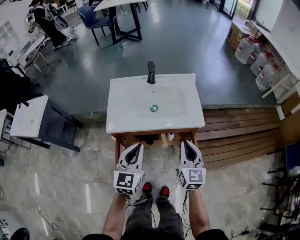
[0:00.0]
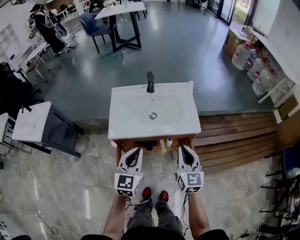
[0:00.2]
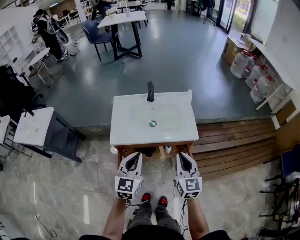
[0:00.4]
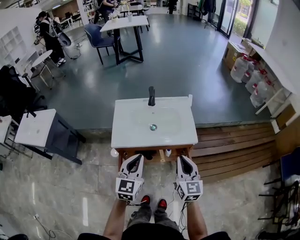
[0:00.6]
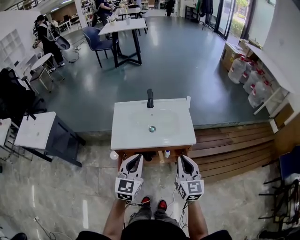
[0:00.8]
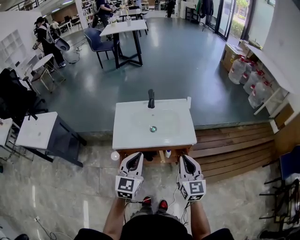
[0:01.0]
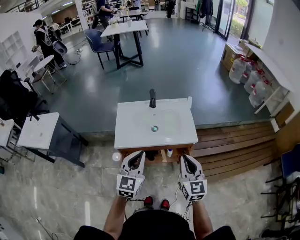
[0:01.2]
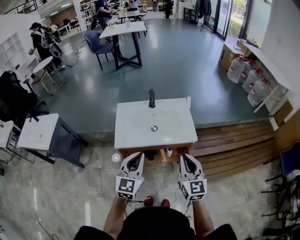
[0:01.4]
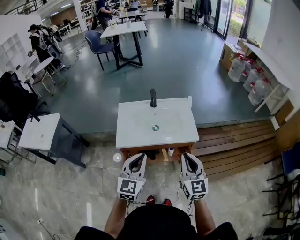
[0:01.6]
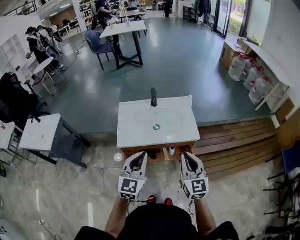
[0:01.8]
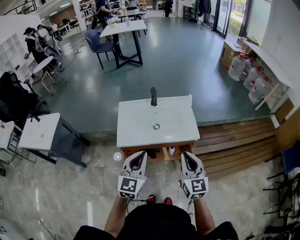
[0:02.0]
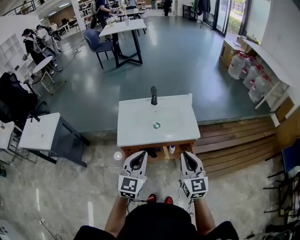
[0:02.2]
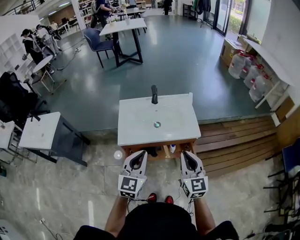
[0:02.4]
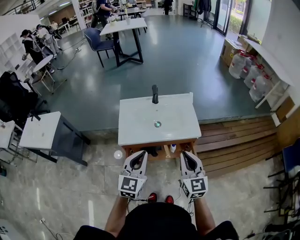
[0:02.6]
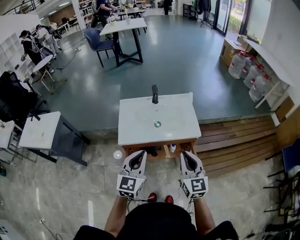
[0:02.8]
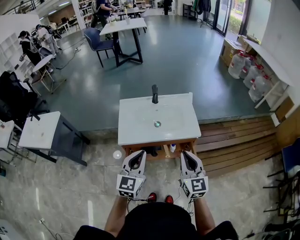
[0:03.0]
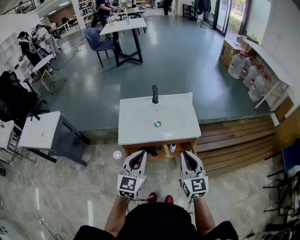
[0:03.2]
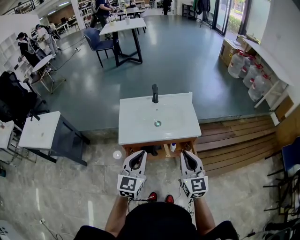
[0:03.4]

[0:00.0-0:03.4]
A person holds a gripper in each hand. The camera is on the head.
0:00.0 to 0:01.6: The right gripper moves upward and backward, about 15 cm. The left gripper heads upward, covering approximately 10 cm.
0:01.6 to 0:03.4: The grippers move only a little.

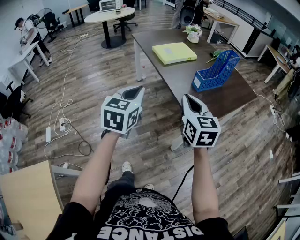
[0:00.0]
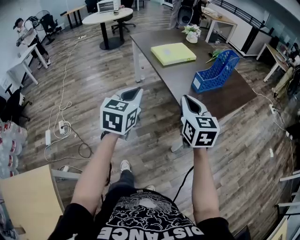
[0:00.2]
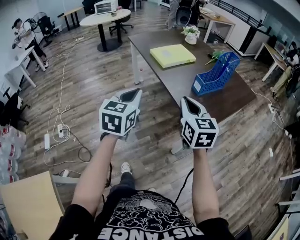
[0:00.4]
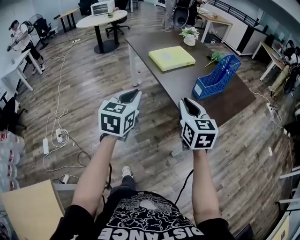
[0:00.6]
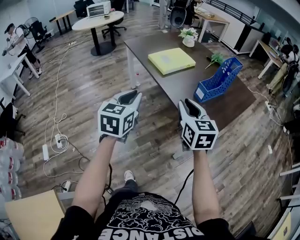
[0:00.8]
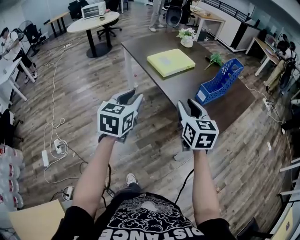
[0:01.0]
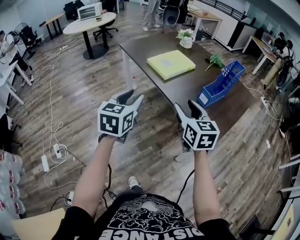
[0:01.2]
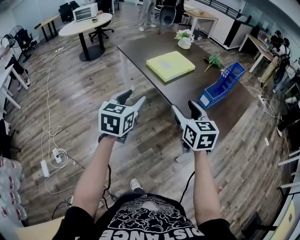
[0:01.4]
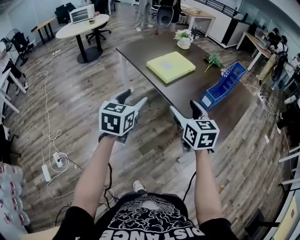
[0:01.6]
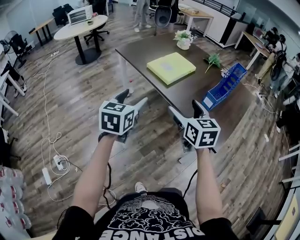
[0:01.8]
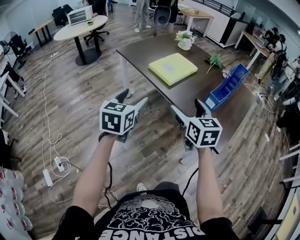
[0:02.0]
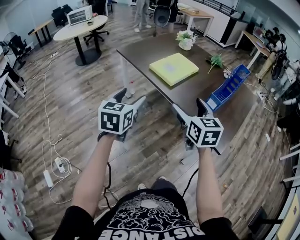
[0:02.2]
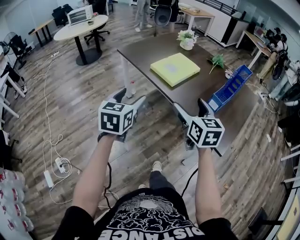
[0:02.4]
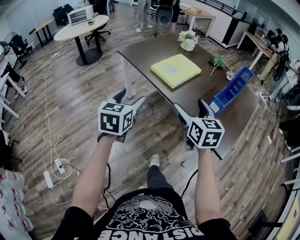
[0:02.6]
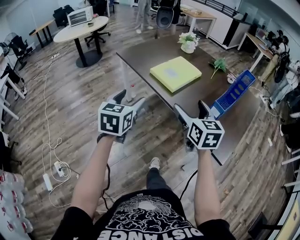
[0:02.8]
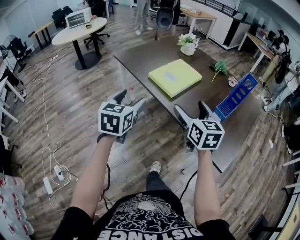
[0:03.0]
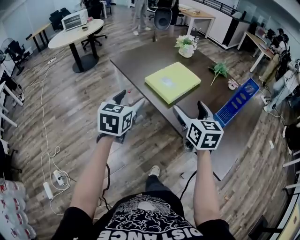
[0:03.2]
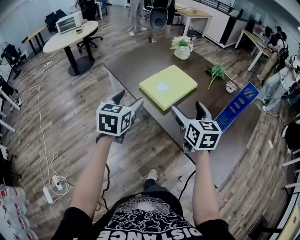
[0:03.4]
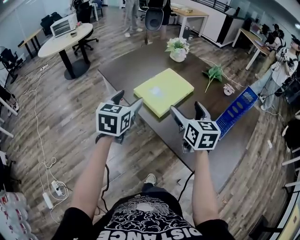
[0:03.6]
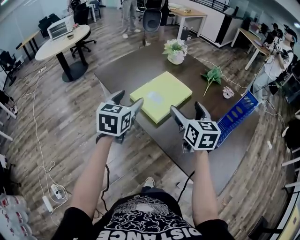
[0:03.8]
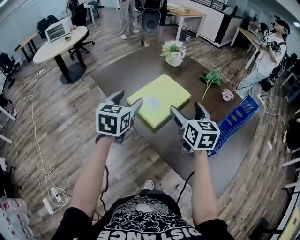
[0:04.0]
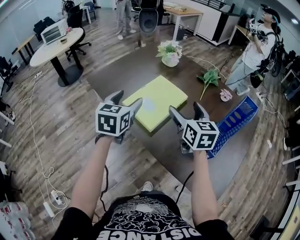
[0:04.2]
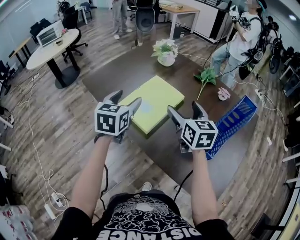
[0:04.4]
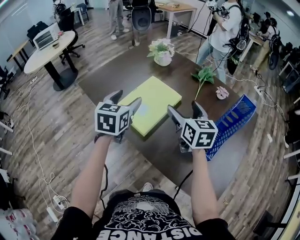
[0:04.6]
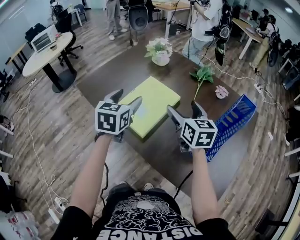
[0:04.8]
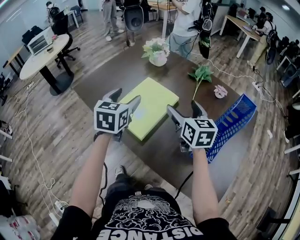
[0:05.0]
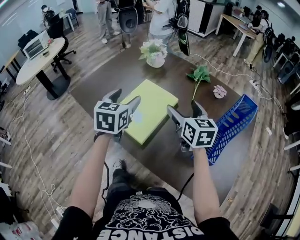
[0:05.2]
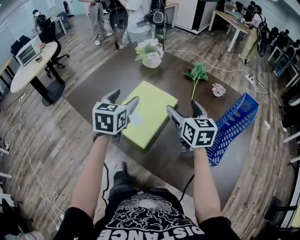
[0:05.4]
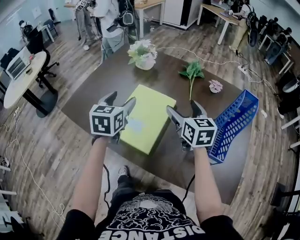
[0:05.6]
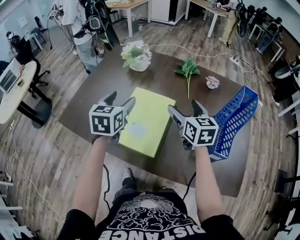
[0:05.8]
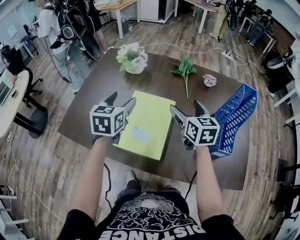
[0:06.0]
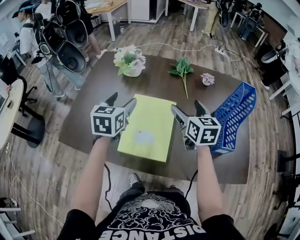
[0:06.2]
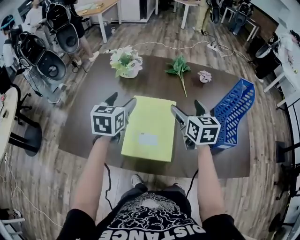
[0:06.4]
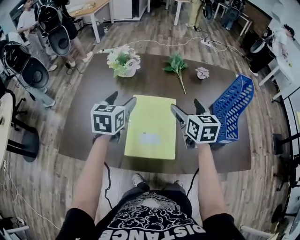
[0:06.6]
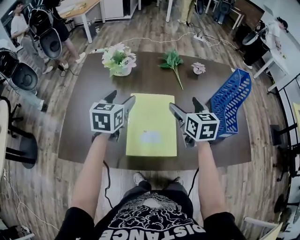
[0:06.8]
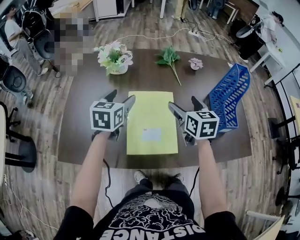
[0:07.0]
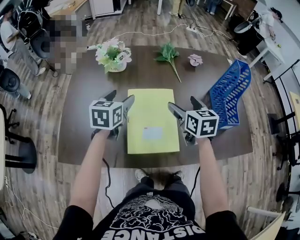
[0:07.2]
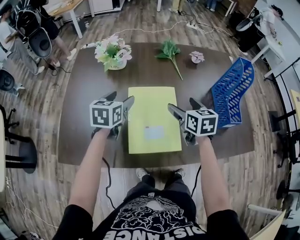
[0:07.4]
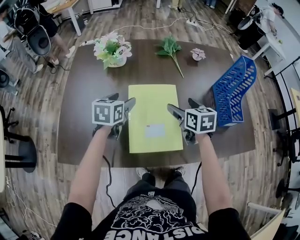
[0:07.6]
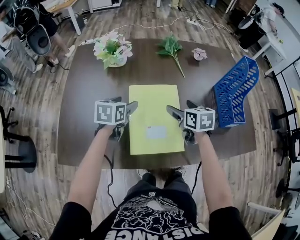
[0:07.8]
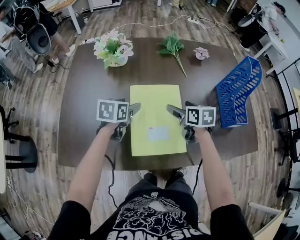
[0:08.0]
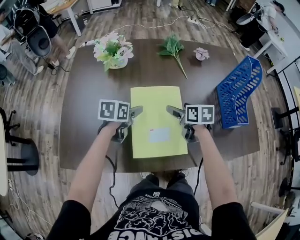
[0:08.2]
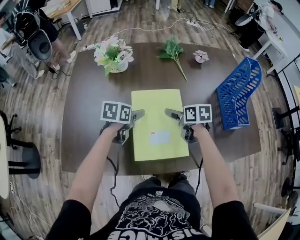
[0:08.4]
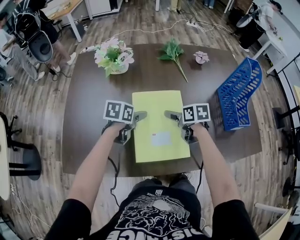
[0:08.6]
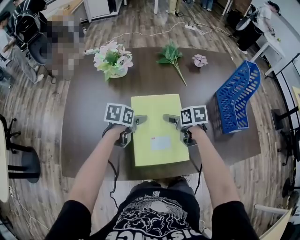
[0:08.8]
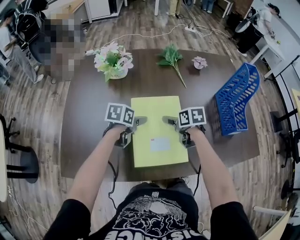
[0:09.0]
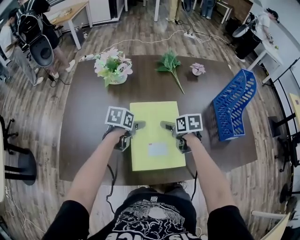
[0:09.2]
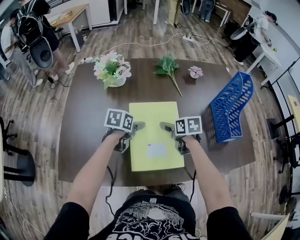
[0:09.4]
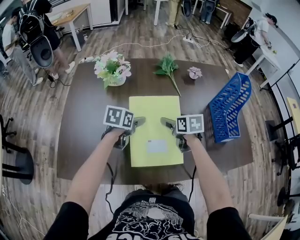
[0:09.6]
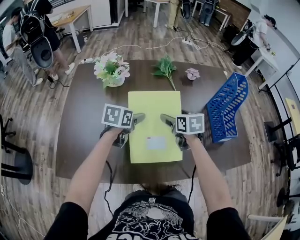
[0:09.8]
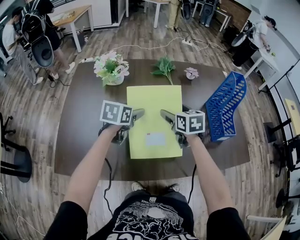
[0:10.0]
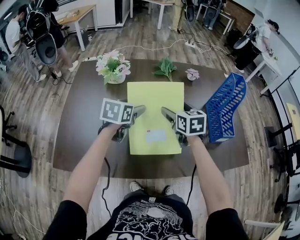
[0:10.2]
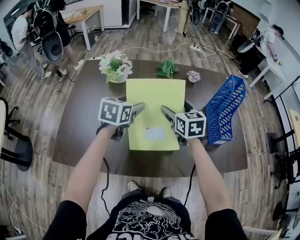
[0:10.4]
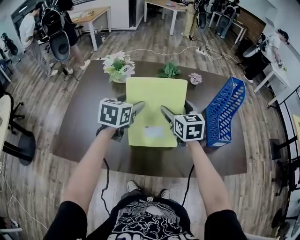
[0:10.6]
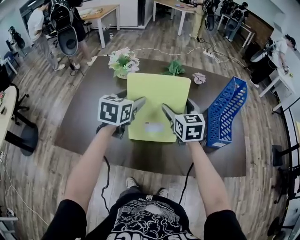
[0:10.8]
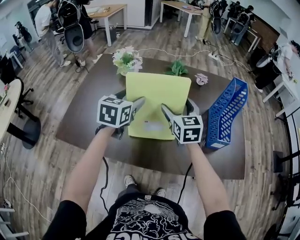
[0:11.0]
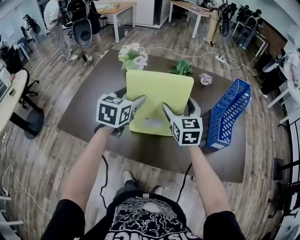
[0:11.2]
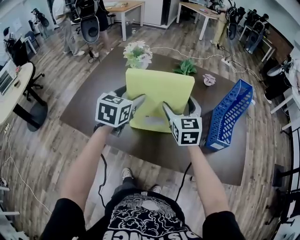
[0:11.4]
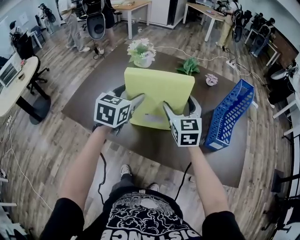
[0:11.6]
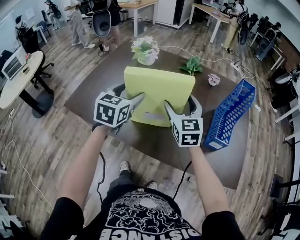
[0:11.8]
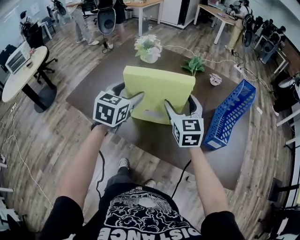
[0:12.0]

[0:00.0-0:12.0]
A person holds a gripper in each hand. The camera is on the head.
0:00.0 to 0:01.6: The two grippers go about 20 cm forward and to the left. The left gripper opens up. The right gripper opens up.
0:01.6 to 0:03.0: Both grippers travel together forward, some 15 cm.
0:03.0 to 0:04.4: The grippers both shift forward and to the right by some 30 cm.
0:04.4 to 0:06.0: The right gripper travels forward by some 10 cm, and swivels about 30 degrees. Meanwhile the left gripper goes roughly 20 cm forward, and changes its angle by some 20 degrees.
0:06.0 to 0:07.6: The left gripper heads downward and forward, covering roughly 15 cm, and turns by about 30 degrees. The right gripper goes about 10 cm downward, and rotates roughly 20 degrees.
0:07.6 to 0:09.0: Both grippers travel together downward, approximately 10 cm. The left gripper rotates approximately 20 degrees. The right gripper rotates approximately 20 degrees.
0:09.0 to 0:10.4: Both grippers move upward, roughly 15 cm. The left gripper turns by roughly 30 degrees; the right gripper swivels some 40 degrees.
0:10.4 to 0:12.0: The two grippers go roughly 15 cm backward. The left gripper swivels roughly 30 degrees; the right gripper swivels approximately 30 degrees.

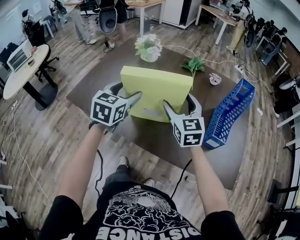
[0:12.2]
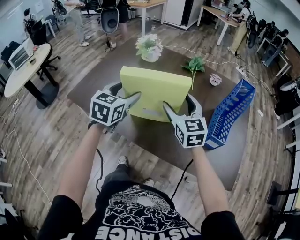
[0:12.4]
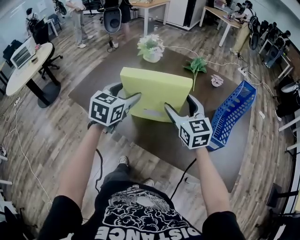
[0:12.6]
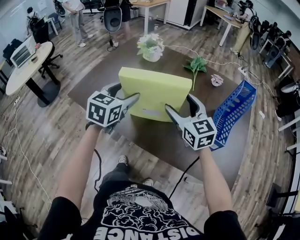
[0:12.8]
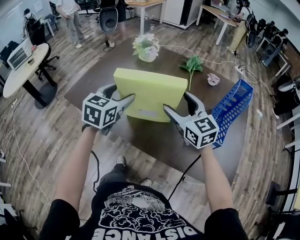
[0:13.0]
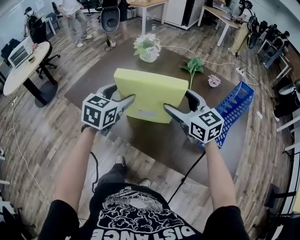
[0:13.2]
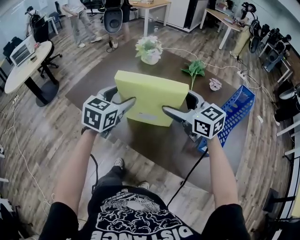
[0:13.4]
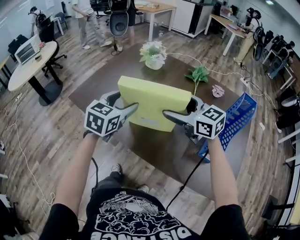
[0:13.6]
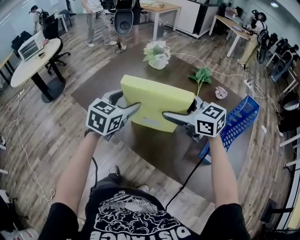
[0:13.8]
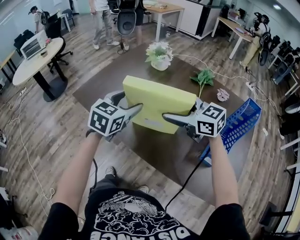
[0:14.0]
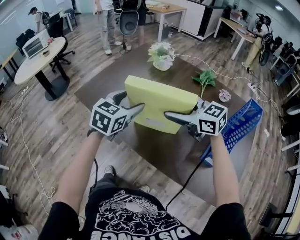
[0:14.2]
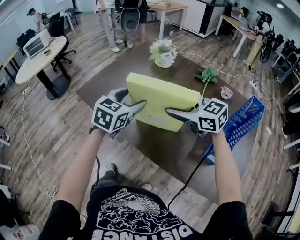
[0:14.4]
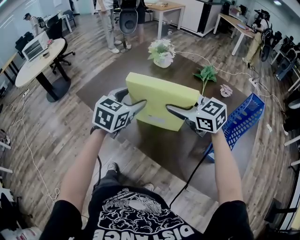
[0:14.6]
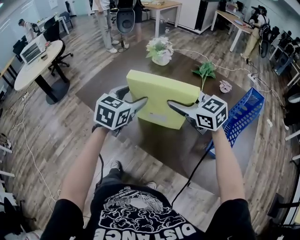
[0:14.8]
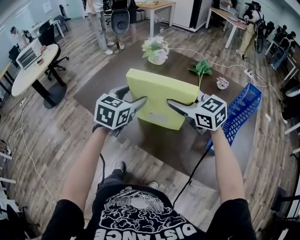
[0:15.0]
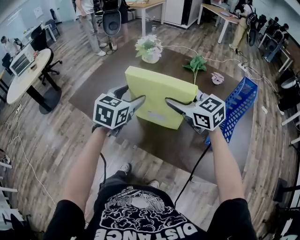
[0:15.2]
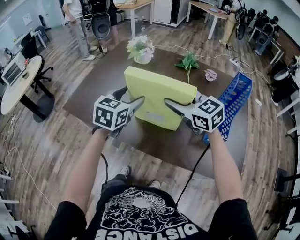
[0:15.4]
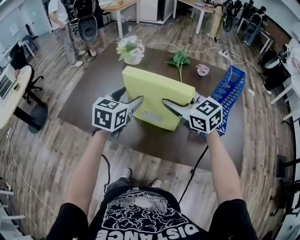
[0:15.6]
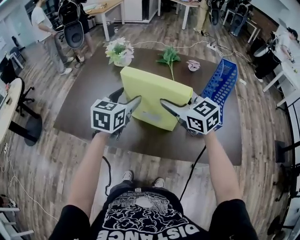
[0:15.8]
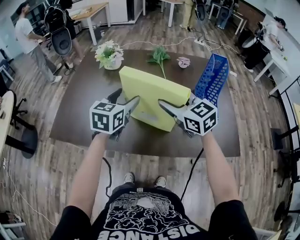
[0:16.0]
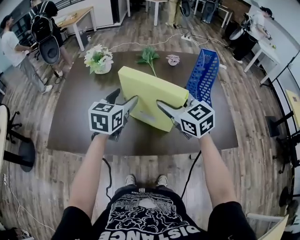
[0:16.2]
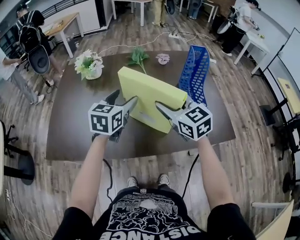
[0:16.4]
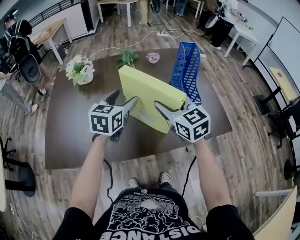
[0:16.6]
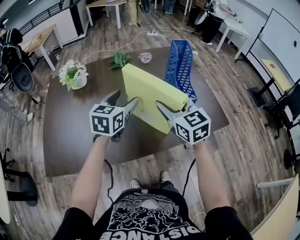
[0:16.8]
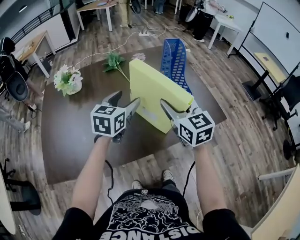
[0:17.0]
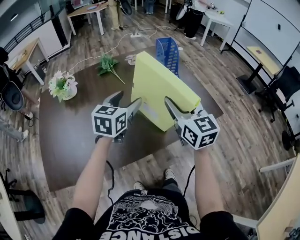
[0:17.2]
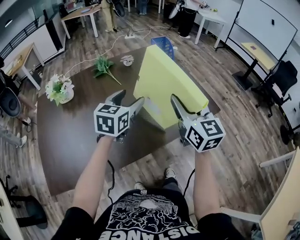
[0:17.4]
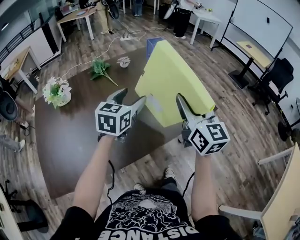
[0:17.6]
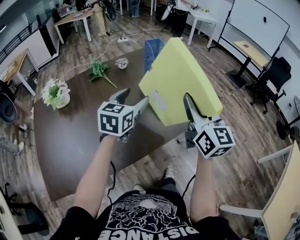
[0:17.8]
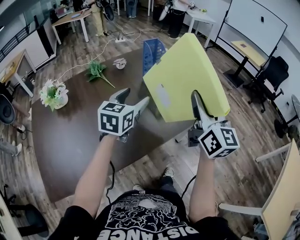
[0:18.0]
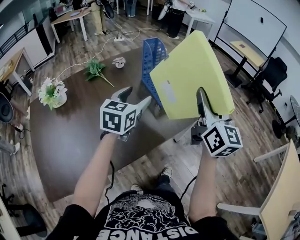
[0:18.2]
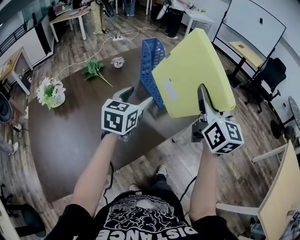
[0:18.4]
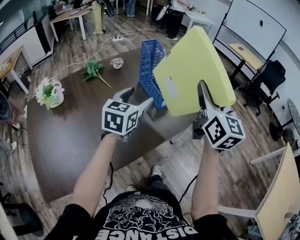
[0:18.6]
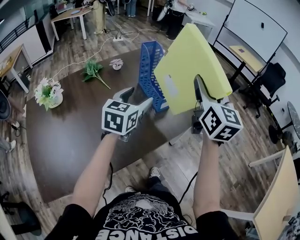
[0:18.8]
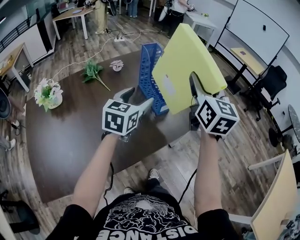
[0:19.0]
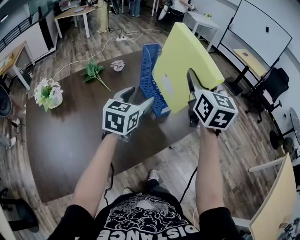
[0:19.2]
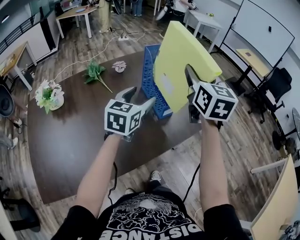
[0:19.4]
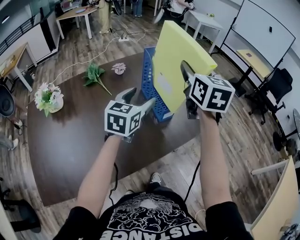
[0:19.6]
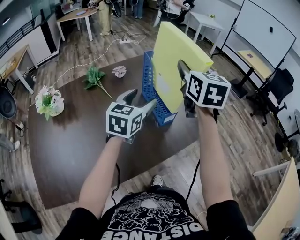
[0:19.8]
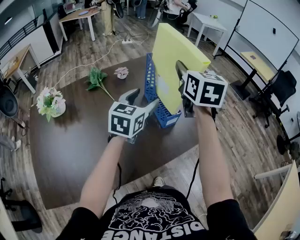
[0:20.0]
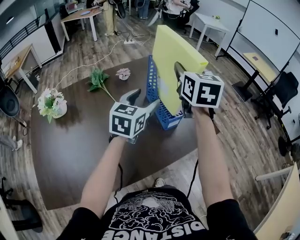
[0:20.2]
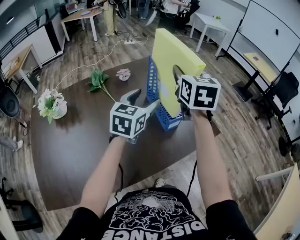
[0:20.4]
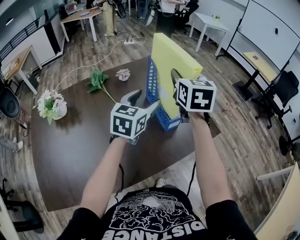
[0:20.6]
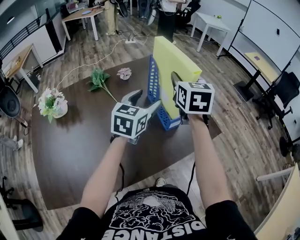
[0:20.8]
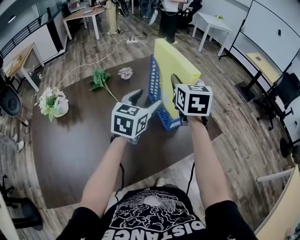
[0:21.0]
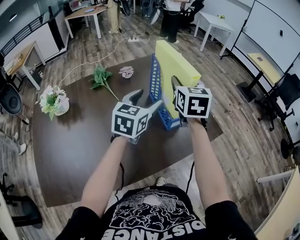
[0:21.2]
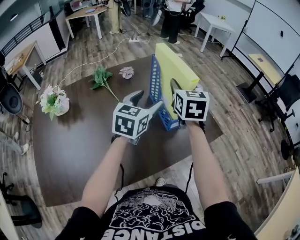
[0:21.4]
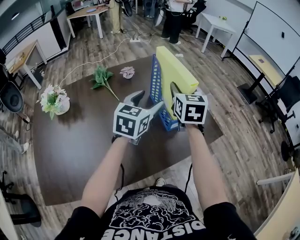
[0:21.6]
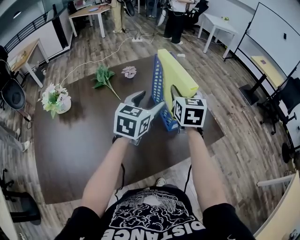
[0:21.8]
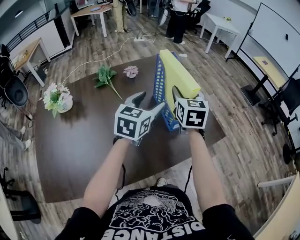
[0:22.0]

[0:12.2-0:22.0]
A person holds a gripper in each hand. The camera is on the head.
0:12.2 to 0:13.6: The right gripper swivels approximately 40 degrees.
0:13.6 to 0:15.0: The right gripper closes.
0:15.0 to 0:16.4: The right gripper changes place by roughly 10 cm, and swivels some 50 degrees. The left gripper moves about 10 cm, and rotates some 30 degrees.
0:16.4 to 0:17.8: The right gripper changes place by roughly 20 cm, and rotates approximately 60 degrees, while the left gripper ends up some 15 cm from where it was, and swivels approximately 30 degrees.
0:17.8 to 0:19.2: The right gripper heads forward and upward, covering roughly 15 cm, while the left gripper moves forward, approximately 5 cm.
0:19.2 to 0:20.6: The left gripper heads forward, covering approximately 5 cm; the right gripper shifts some 15 cm forward and to the left.
0:20.6 to 0:22.0: The right gripper heads downward, covering roughly 10 cm.
